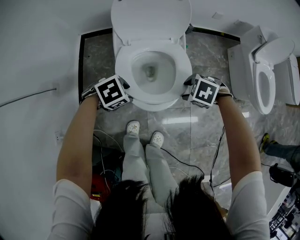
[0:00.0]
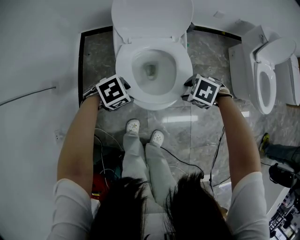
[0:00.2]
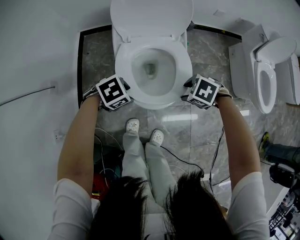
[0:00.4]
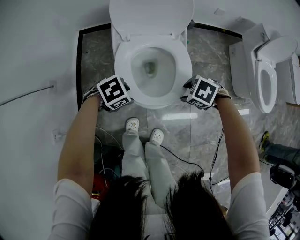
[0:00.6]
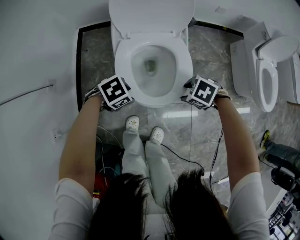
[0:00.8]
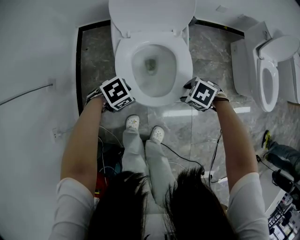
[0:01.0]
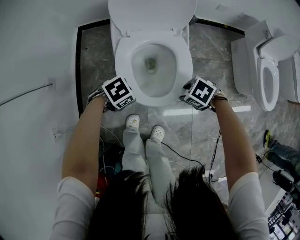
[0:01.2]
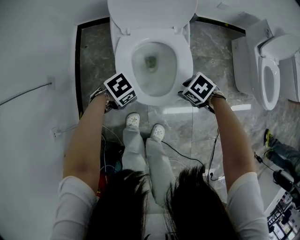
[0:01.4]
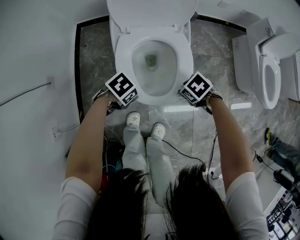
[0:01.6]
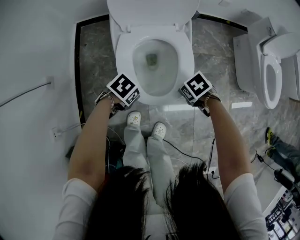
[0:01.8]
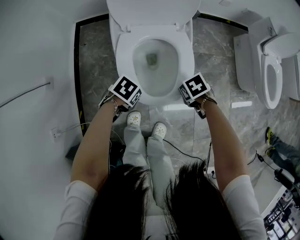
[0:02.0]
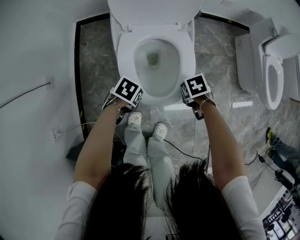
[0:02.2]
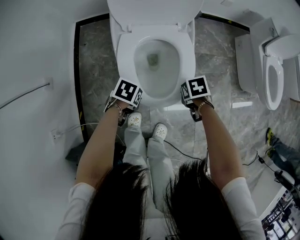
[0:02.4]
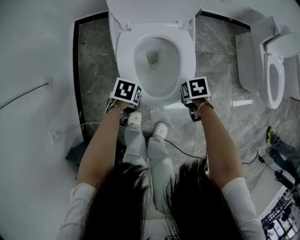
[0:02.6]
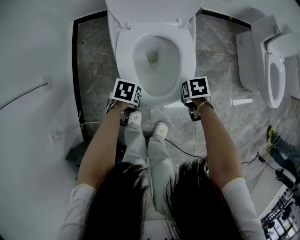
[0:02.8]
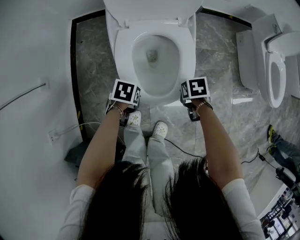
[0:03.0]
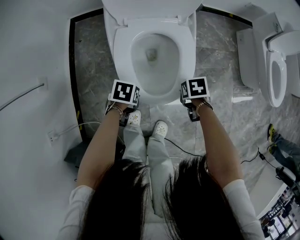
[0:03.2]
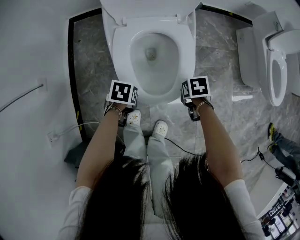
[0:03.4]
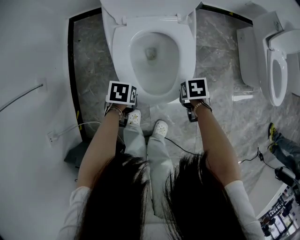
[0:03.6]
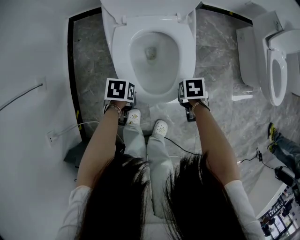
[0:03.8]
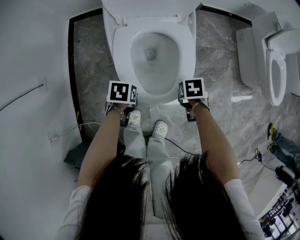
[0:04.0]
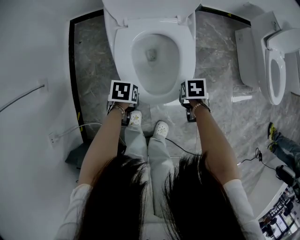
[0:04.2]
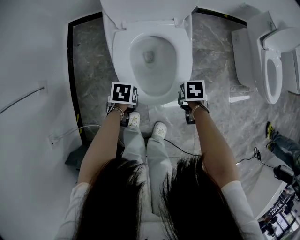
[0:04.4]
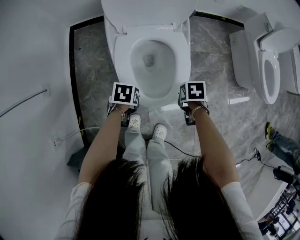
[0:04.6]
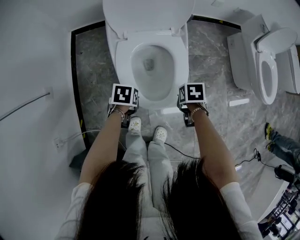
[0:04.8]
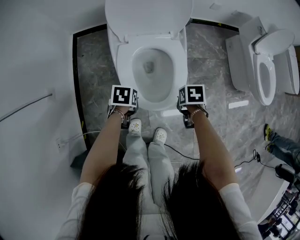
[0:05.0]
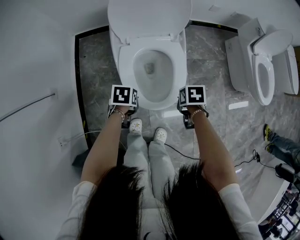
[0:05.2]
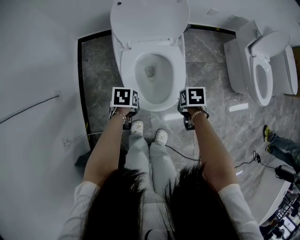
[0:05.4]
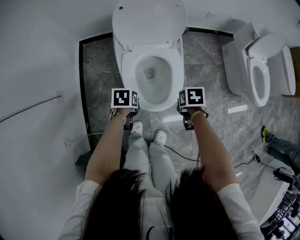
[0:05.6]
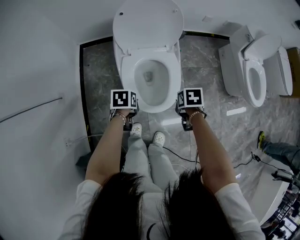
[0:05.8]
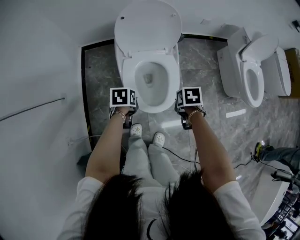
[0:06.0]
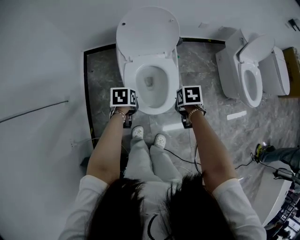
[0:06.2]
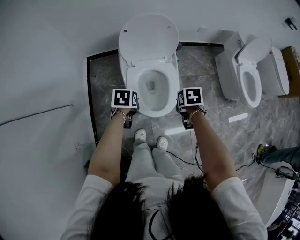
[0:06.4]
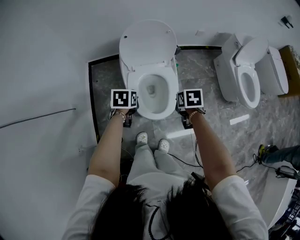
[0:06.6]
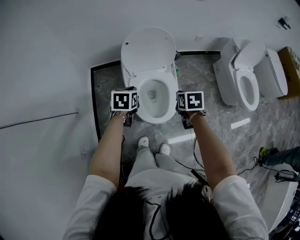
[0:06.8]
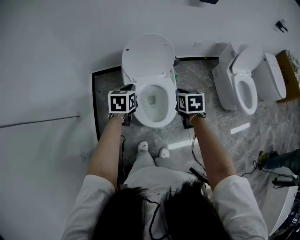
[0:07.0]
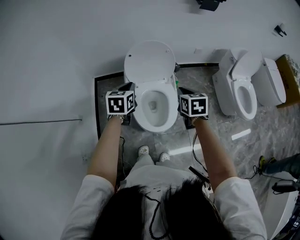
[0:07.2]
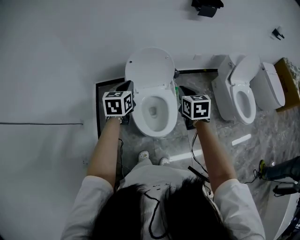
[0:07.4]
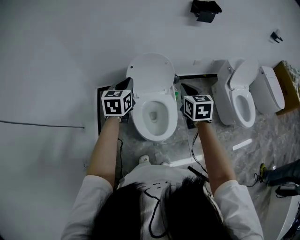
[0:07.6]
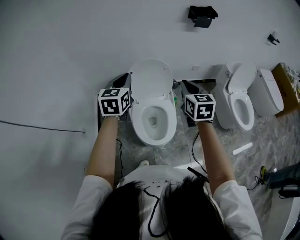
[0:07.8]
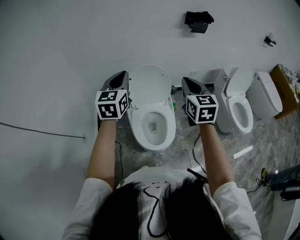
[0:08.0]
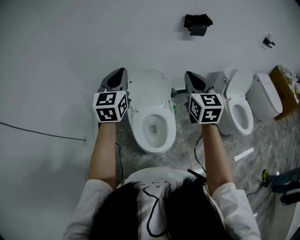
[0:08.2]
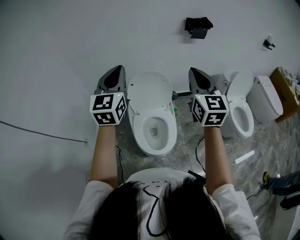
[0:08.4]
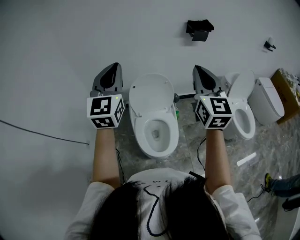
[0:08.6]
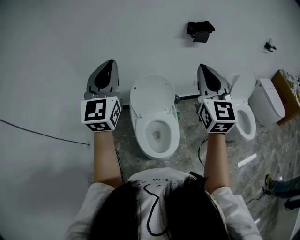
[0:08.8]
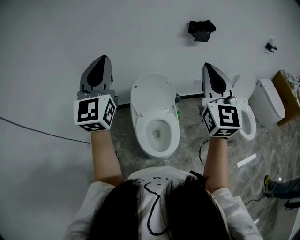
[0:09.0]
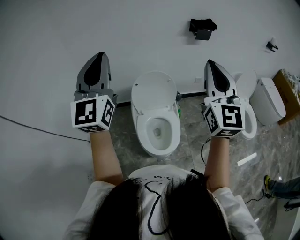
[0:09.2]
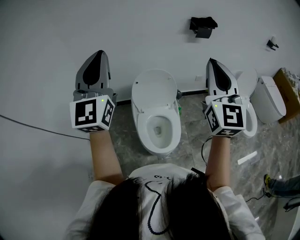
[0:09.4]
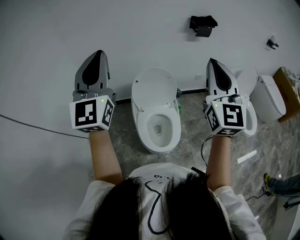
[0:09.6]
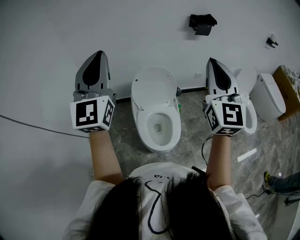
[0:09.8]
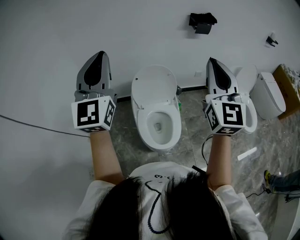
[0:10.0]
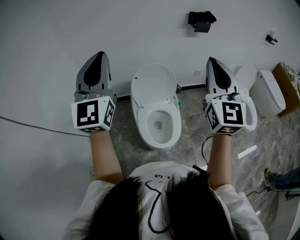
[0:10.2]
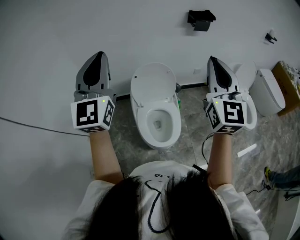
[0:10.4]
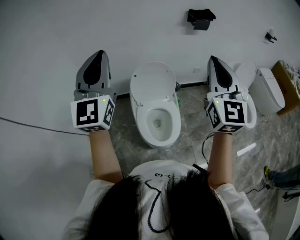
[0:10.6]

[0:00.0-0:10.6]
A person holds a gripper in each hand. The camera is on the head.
0.0 to 1.6 s: Both grippers move downward, roughly 10 cm. The left gripper rotates approximately 20 degrees. The right gripper swivels about 30 degrees.
1.6 to 3.0 s: The two grippers go roughly 10 cm downward. The right gripper changes its angle by approximately 40 degrees, and closes up, while the left gripper swivels roughly 30 degrees, and closes its fingers.
3.0 to 4.6 s: The grippers stay close to where they were, moving slightly.
4.6 to 6.0 s: The two grippers go about 15 cm upward.
6.0 to 7.6 s: Both grippers travel together upward, some 35 cm. The right gripper tilts its fingers some 50 degrees upward, while the left gripper angles its fingers upward, by approximately 40 degrees.
7.6 to 9.0 s: The two grippers go about 30 cm upward. The right gripper points its fingers roughly 40 degrees further upward. The left gripper tips its fingers upward by approximately 40 degrees.
9.0 to 10.6 s: The grippers stay close to where they were, moving slightly.

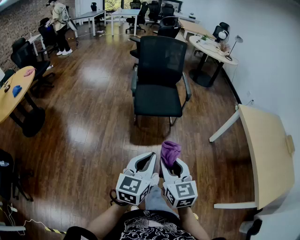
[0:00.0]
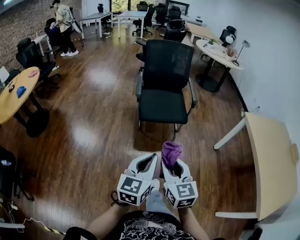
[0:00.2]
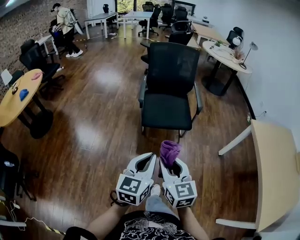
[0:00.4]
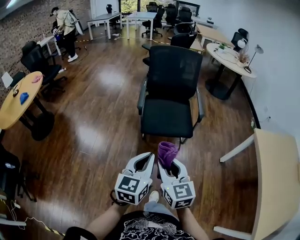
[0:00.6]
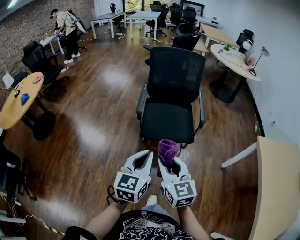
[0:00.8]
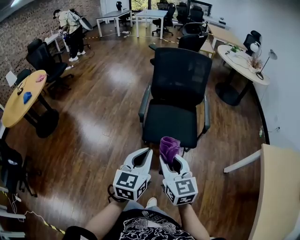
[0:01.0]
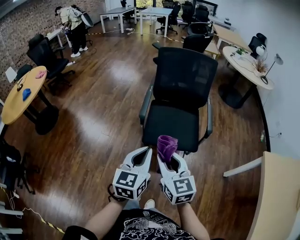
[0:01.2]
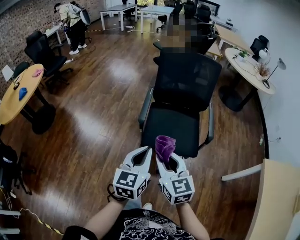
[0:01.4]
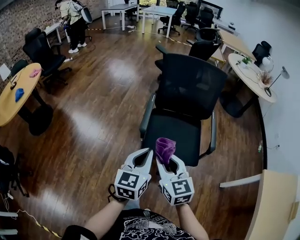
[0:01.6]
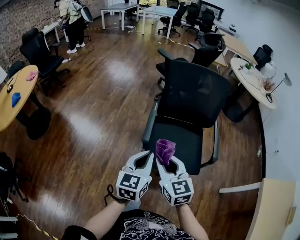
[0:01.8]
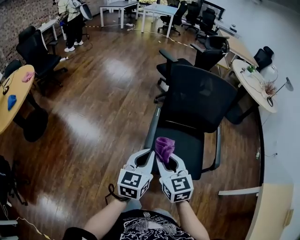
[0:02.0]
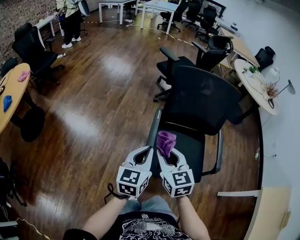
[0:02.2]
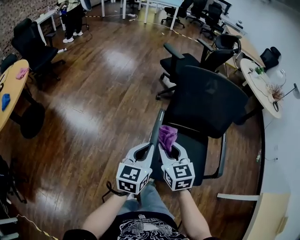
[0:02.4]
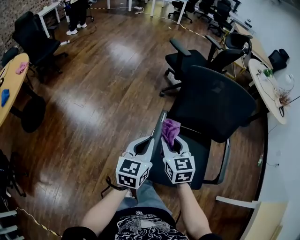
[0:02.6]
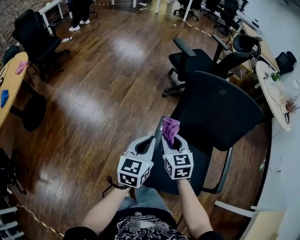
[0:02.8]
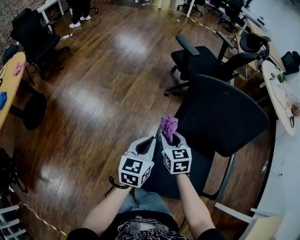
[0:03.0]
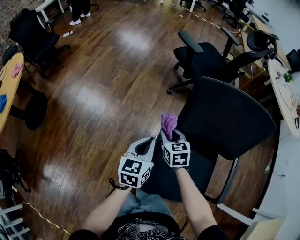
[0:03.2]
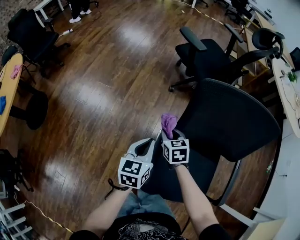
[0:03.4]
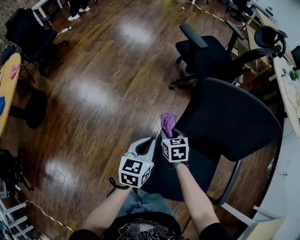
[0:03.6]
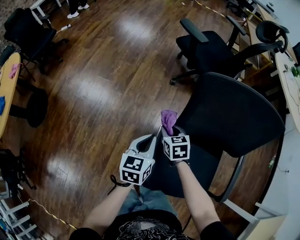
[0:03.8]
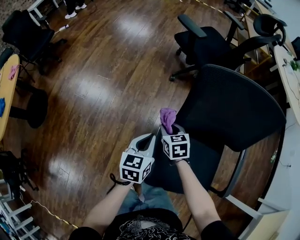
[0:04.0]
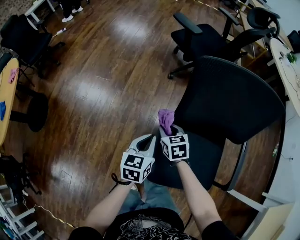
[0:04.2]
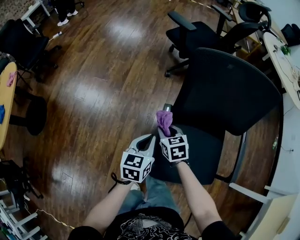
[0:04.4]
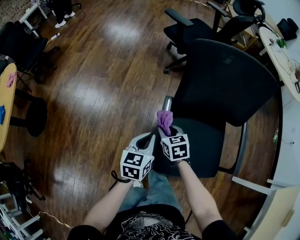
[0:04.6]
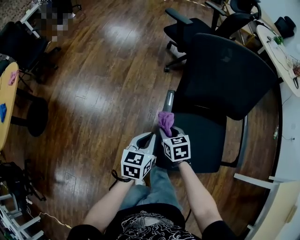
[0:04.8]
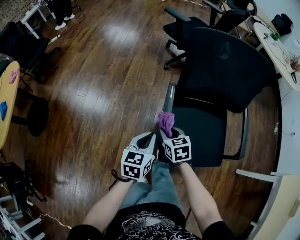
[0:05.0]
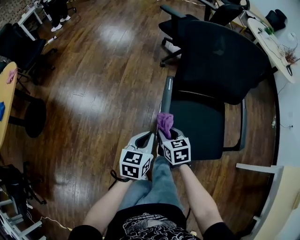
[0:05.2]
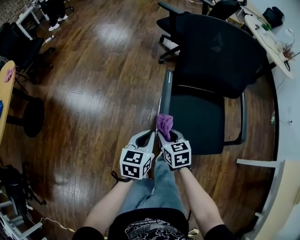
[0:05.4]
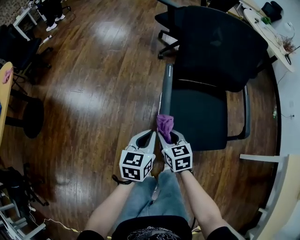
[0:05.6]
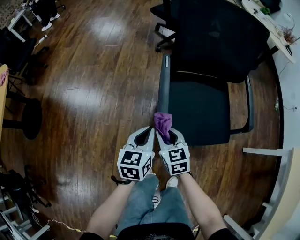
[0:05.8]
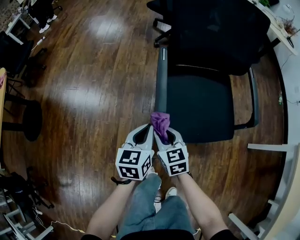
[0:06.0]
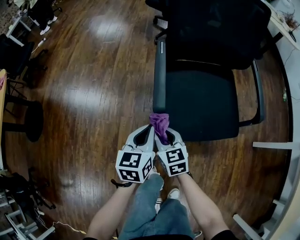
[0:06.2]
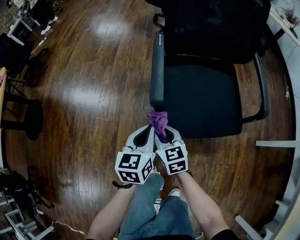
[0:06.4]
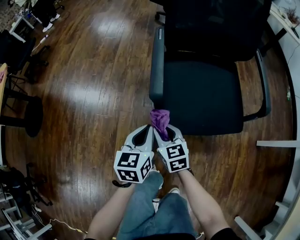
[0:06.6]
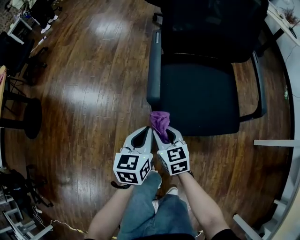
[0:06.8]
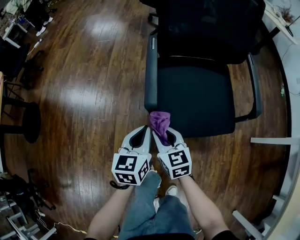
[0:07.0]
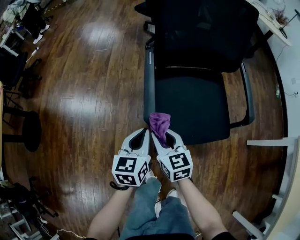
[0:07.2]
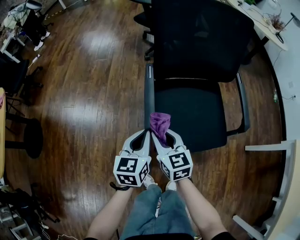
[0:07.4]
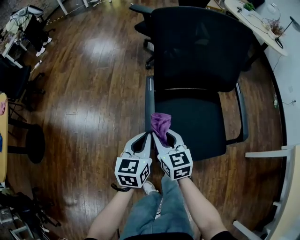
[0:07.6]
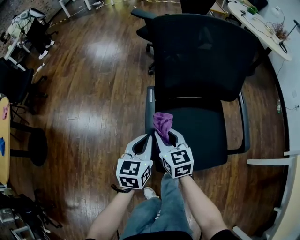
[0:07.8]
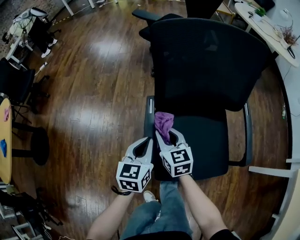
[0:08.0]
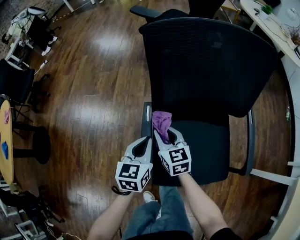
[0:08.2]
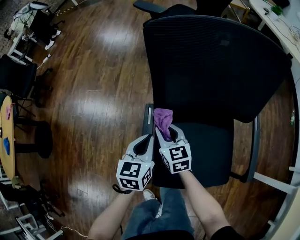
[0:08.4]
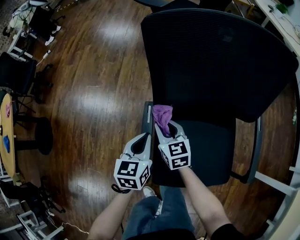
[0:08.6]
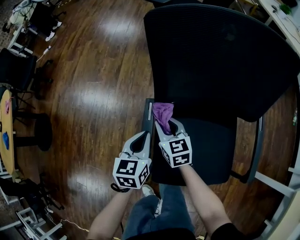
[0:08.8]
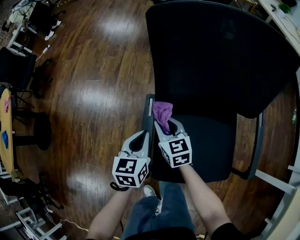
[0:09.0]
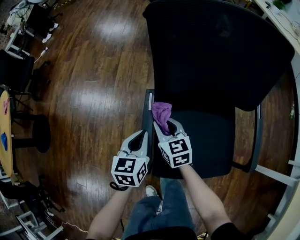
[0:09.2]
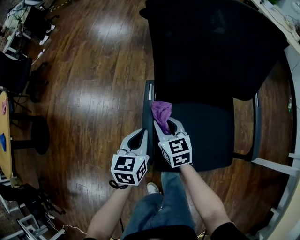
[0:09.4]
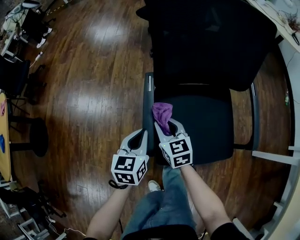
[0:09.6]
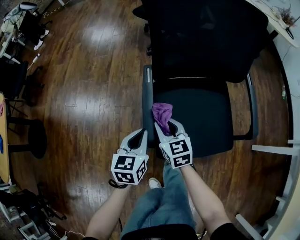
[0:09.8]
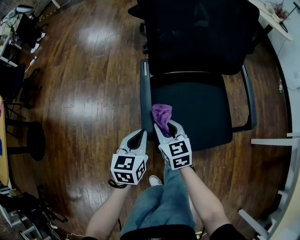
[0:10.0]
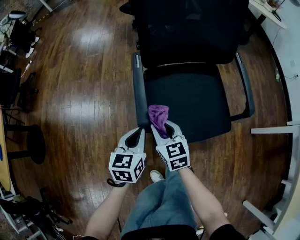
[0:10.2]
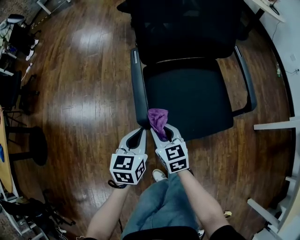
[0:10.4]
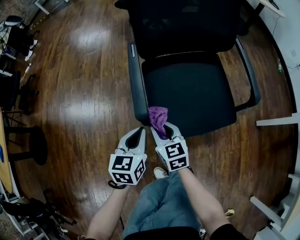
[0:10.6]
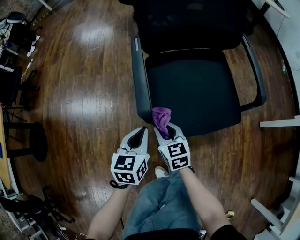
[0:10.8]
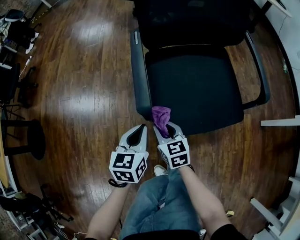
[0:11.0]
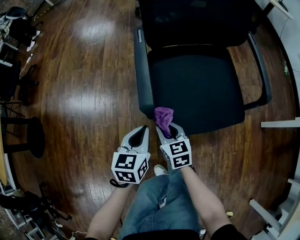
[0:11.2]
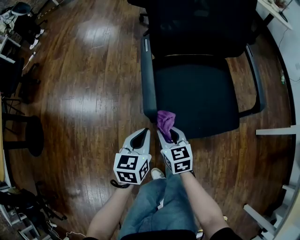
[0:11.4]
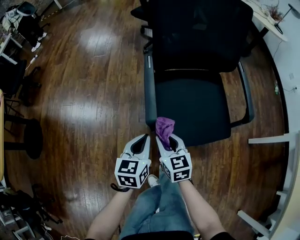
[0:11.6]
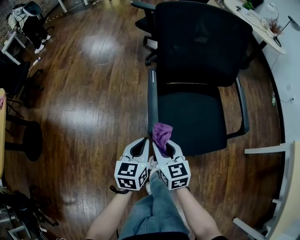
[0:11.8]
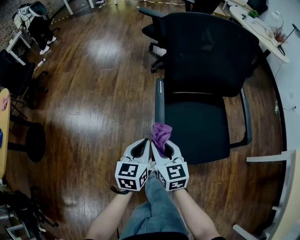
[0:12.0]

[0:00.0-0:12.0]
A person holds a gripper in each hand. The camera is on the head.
0.0 to 1.6 s: Both grippers are carried forward, about 50 cm.
1.6 to 3.0 s: The pair of grippers is taken forward, approximately 40 cm.
3.0 to 4.4 s: The grippers both shift downward by some 10 cm.
4.4 to 6.0 s: Both grippers move backward, some 20 cm.
6.0 to 7.6 s: The left gripper goes approximately 10 cm forward and upward; the right gripper heads upward and forward, covering about 15 cm.
7.6 to 9.0 s: The right gripper moves forward and downward, some 20 cm. Meanwhile the left gripper shifts approximately 15 cm forward.
9.0 to 10.4 s: The grippers both shift backward by roughly 25 cm.
10.4 to 12.0 s: The grippers both shift upward and to the left by about 10 cm.

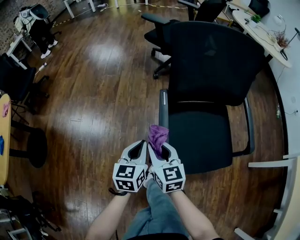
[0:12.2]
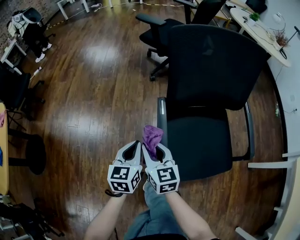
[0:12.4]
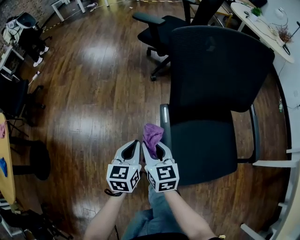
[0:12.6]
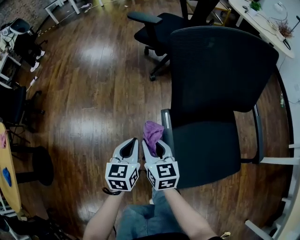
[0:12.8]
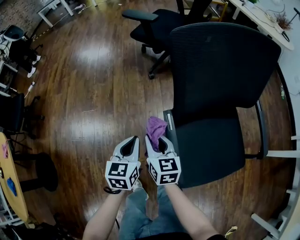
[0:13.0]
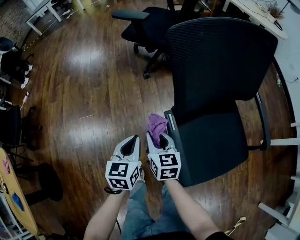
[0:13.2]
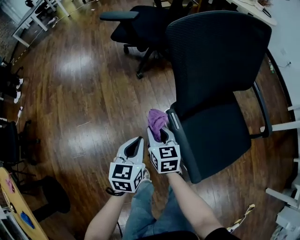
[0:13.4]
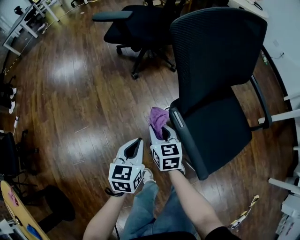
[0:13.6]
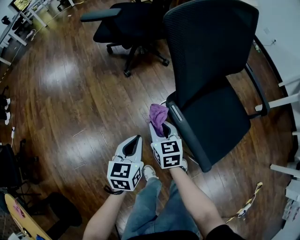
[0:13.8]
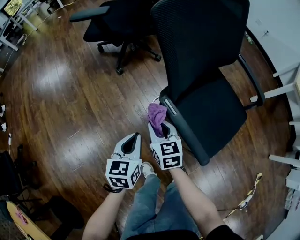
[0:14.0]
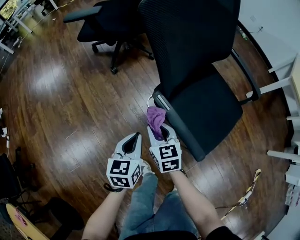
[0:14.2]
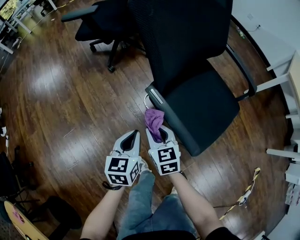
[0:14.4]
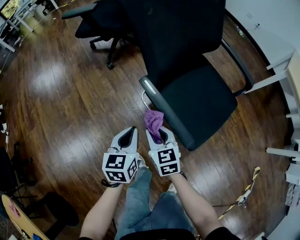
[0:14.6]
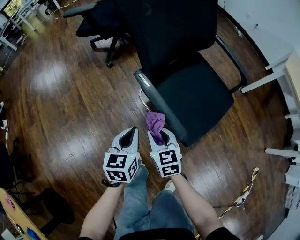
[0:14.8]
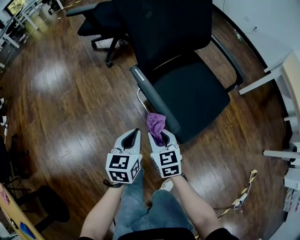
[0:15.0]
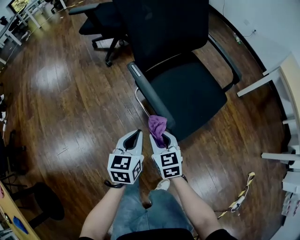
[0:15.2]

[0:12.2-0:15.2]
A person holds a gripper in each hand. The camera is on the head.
12.2 to 13.8 s: The right gripper ends up approximately 25 cm from where it was, and swivels some 30 degrees. Meanwhile the left gripper moves approximately 25 cm, and rotates about 30 degrees.
13.8 to 15.2 s: The two grippers go some 25 cm backward and to the right.
